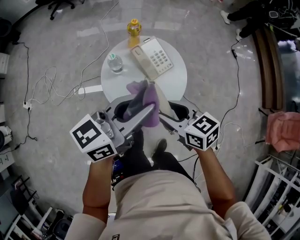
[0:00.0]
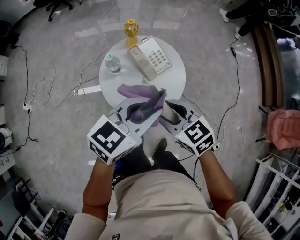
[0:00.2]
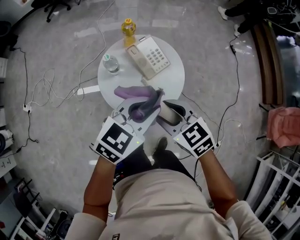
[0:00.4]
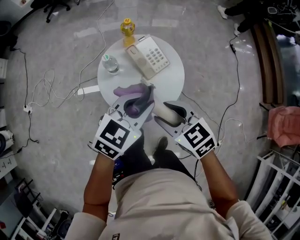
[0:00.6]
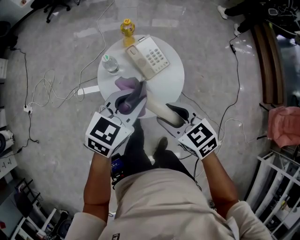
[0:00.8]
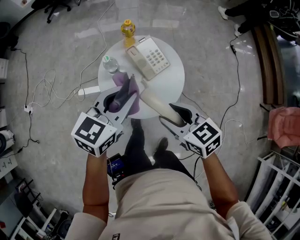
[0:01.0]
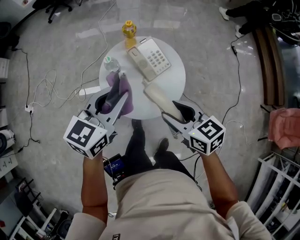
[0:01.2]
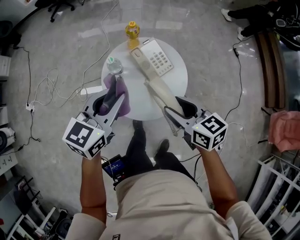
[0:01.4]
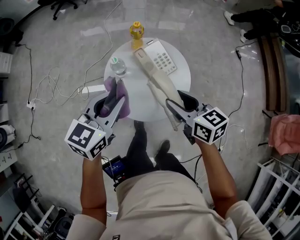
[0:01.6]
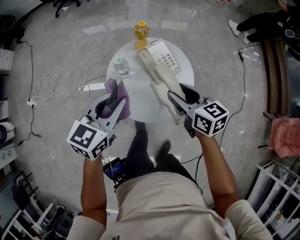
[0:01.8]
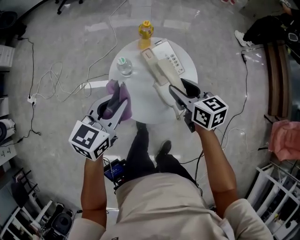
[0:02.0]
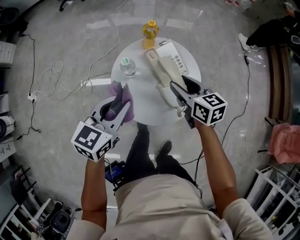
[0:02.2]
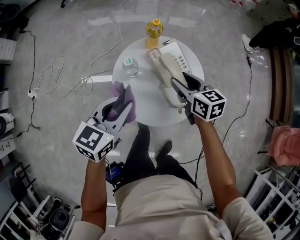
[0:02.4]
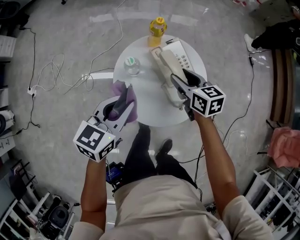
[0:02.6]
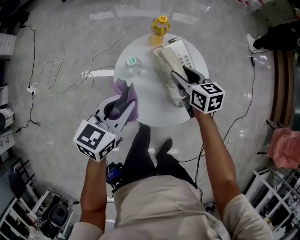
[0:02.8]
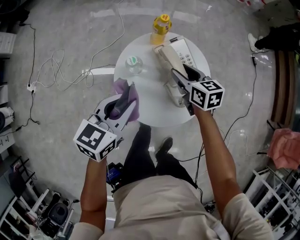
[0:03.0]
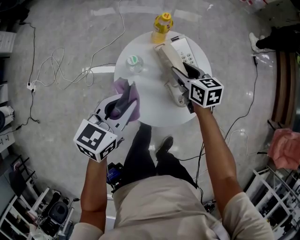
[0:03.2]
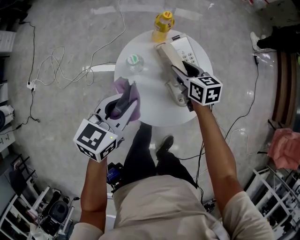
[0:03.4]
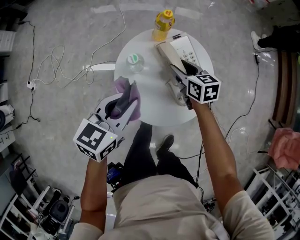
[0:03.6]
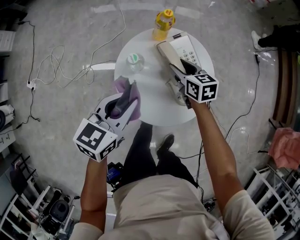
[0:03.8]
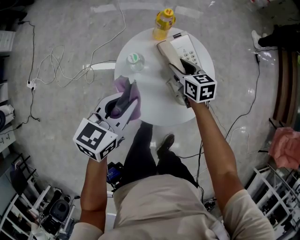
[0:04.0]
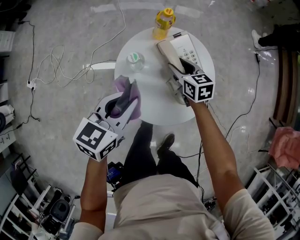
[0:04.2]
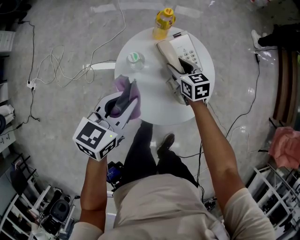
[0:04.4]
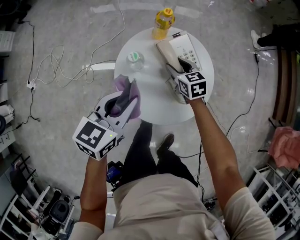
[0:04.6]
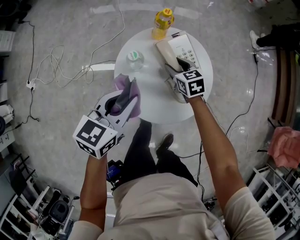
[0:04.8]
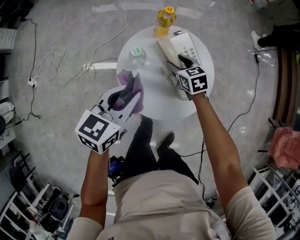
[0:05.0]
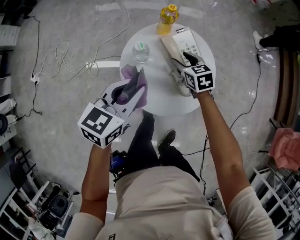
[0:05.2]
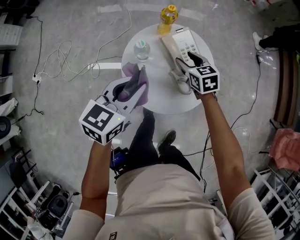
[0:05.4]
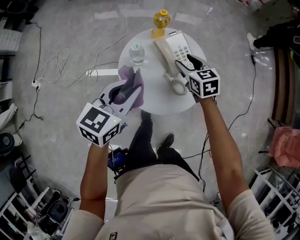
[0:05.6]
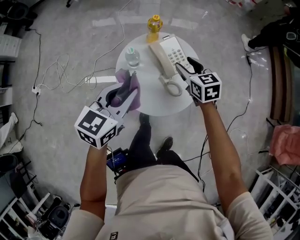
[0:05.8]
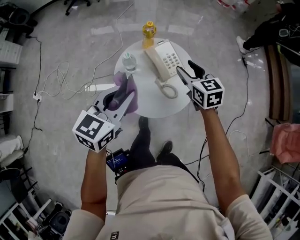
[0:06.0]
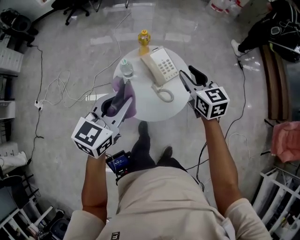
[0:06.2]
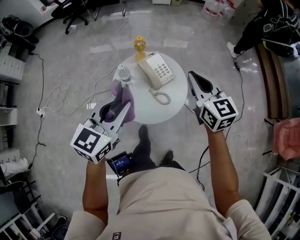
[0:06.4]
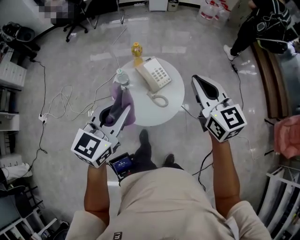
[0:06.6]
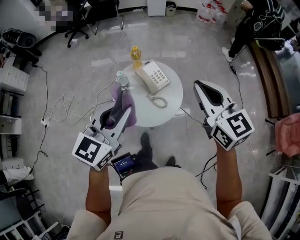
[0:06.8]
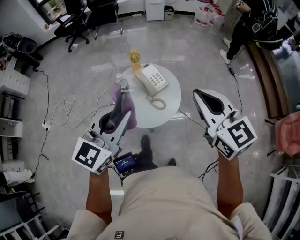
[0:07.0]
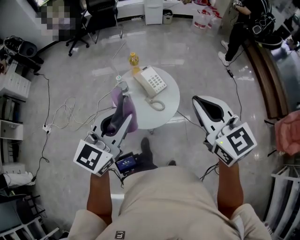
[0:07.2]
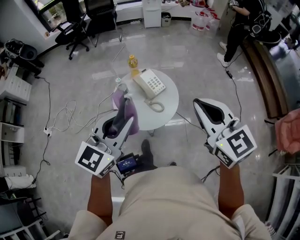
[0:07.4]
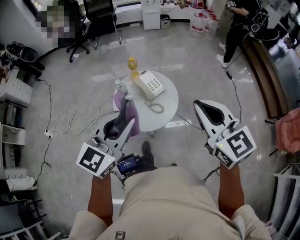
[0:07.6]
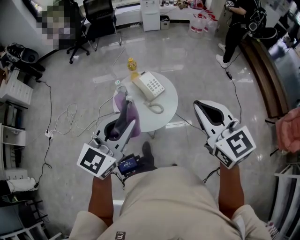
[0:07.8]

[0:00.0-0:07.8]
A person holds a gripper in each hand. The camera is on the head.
0:00.0 to 0:01.6: The right gripper is displaced forward by approximately 5 cm, while the left gripper shifts approximately 10 cm to the left and downward, and changes its angle by approximately 30 degrees.
0:01.6 to 0:03.2: The right gripper shifts about 20 cm forward and downward. Meanwhile the left gripper moves downward, some 10 cm.
0:03.2 to 0:04.6: The right gripper travels downward by about 5 cm.
0:04.6 to 0:06.2: The right gripper goes about 30 cm upward, and swivels approximately 20 degrees. Meanwhile the left gripper is displaced upward and backward by some 15 cm.
0:06.2 to 0:07.8: The right gripper shifts approximately 35 cm upward and backward, and closes; the left gripper moves upward, backward and to the right, about 25 cm.

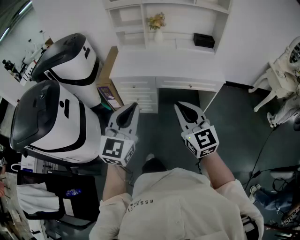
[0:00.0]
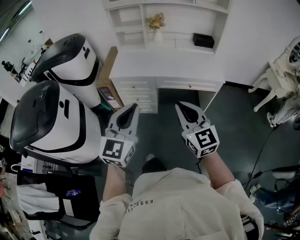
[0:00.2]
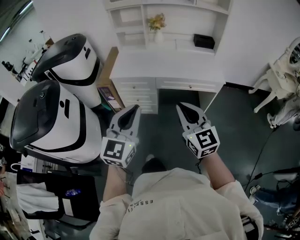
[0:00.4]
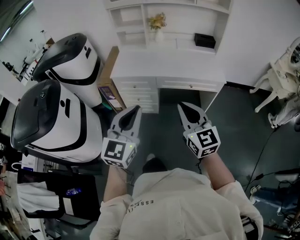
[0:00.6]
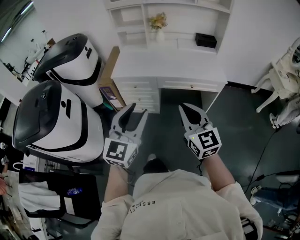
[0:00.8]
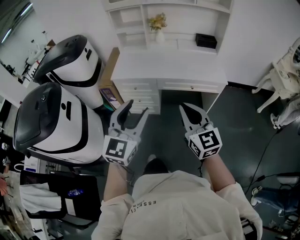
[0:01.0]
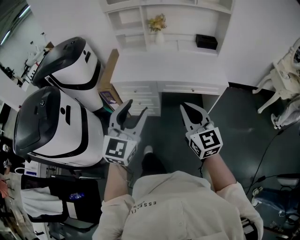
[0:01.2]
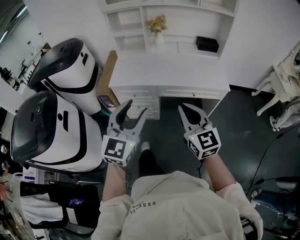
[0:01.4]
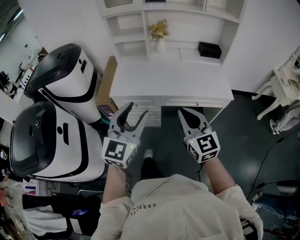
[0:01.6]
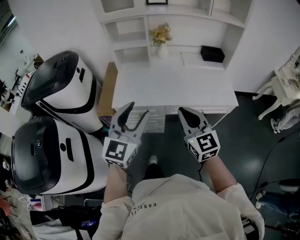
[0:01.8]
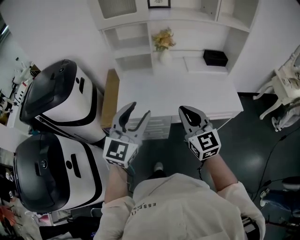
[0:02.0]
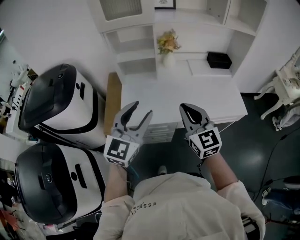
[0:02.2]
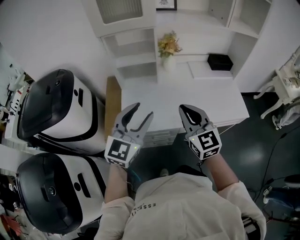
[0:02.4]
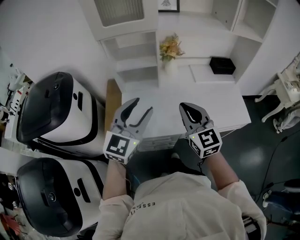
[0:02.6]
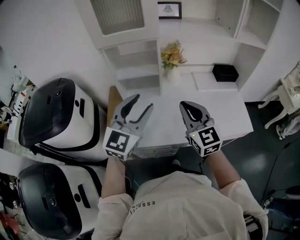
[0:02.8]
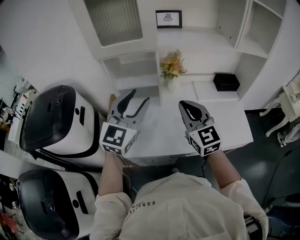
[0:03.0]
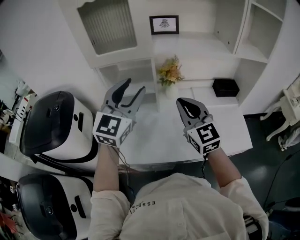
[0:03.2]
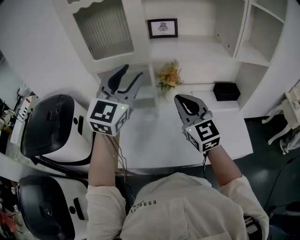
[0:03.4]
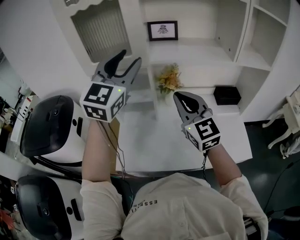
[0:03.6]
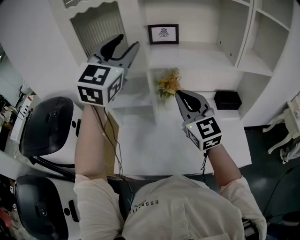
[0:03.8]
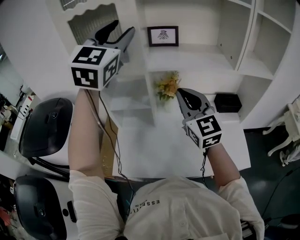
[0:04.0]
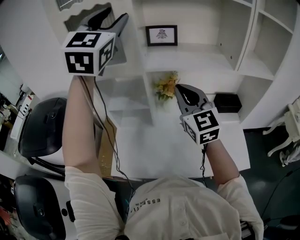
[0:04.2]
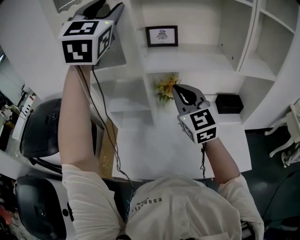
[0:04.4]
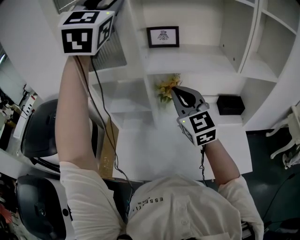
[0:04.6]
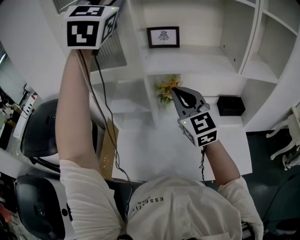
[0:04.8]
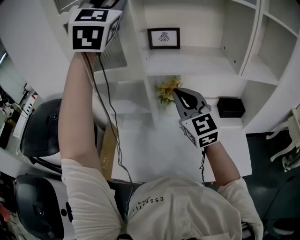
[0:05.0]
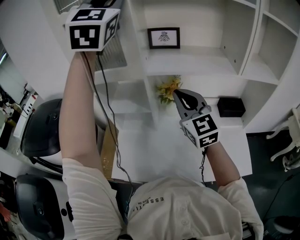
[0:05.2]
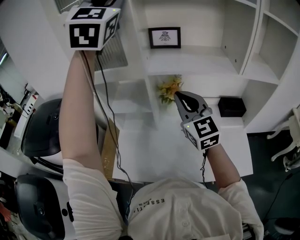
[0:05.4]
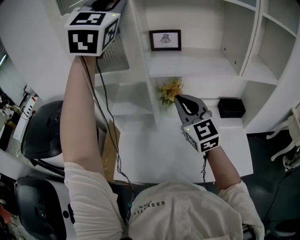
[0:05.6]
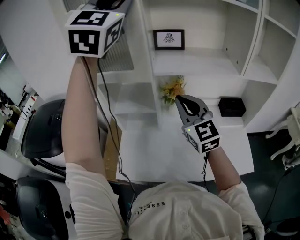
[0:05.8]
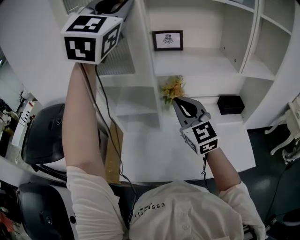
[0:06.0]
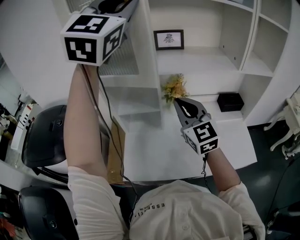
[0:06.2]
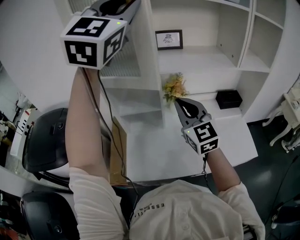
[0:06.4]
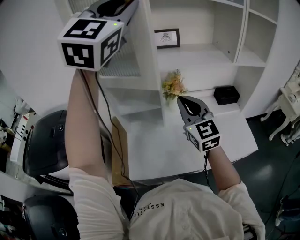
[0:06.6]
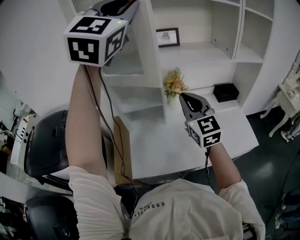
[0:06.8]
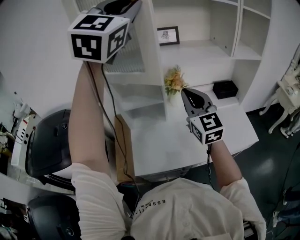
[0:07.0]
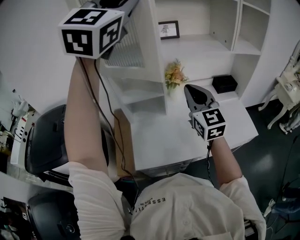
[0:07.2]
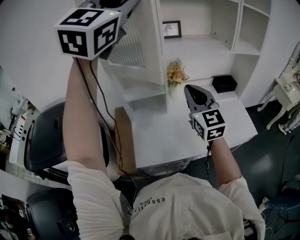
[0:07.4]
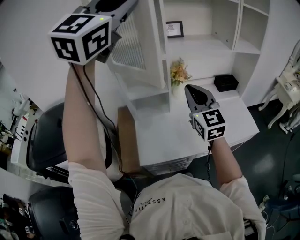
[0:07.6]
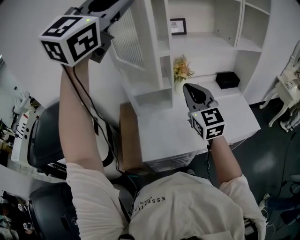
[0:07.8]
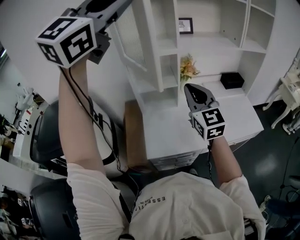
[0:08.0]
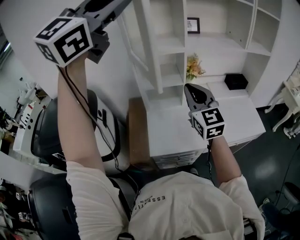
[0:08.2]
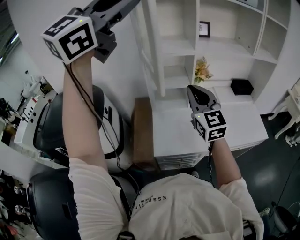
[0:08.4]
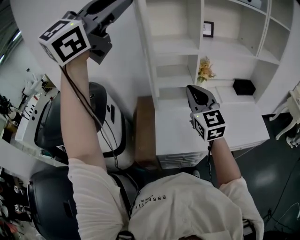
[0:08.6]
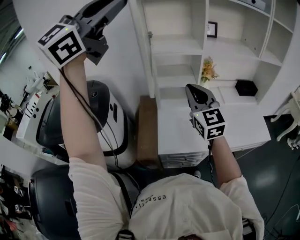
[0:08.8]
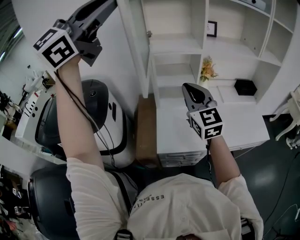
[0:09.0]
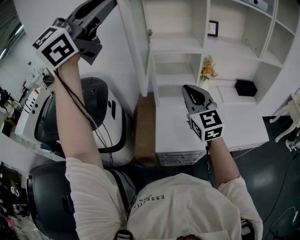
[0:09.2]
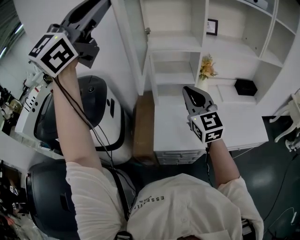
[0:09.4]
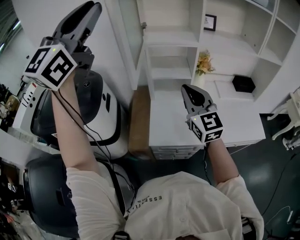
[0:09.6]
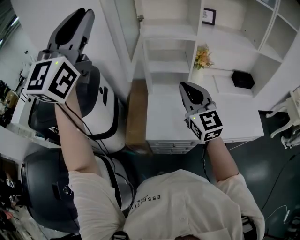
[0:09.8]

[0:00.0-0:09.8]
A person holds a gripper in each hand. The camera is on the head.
0:00.0 to 0:01.4: Both grippers move forward, roughly 10 cm. The left gripper opens up.
0:01.4 to 0:02.8: The pair of grippers is taken forward and to the left, roughly 40 cm.
0:02.8 to 0:04.2: The right gripper heads forward and upward, covering about 20 cm. Meanwhile the left gripper moves upward and forward, approximately 40 cm, and changes its angle by about 30 degrees.
0:04.2 to 0:05.6: The left gripper travels upward by roughly 5 cm, and closes up.
0:05.6 to 0:07.0: The left gripper is displaced backward by roughly 10 cm, and changes its angle by some 20 degrees; the right gripper travels backward and to the left by about 10 cm.
0:07.0 to 0:08.4: The left gripper shifts about 20 cm backward and to the left, and swivels some 20 degrees. Meanwhile the right gripper travels to the left and backward by roughly 15 cm.
0:08.4 to 0:09.8: The left gripper heads to the left, downward and backward, covering approximately 15 cm, and changes its angle by approximately 30 degrees.

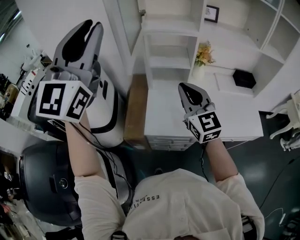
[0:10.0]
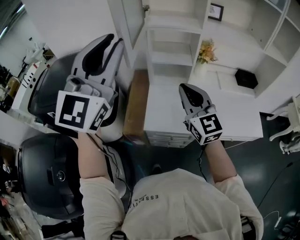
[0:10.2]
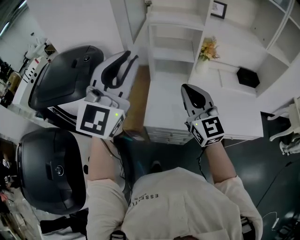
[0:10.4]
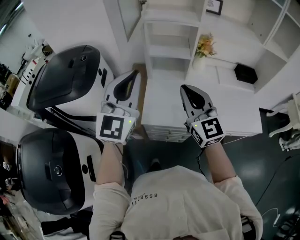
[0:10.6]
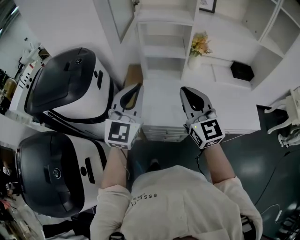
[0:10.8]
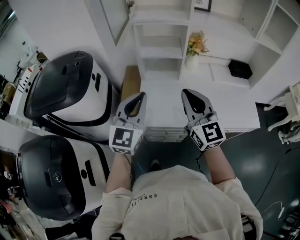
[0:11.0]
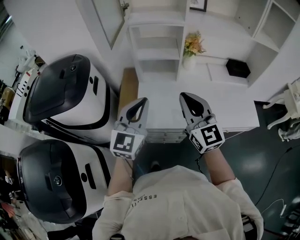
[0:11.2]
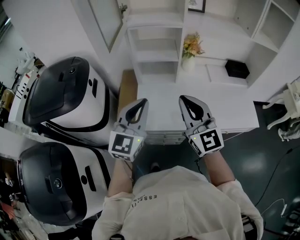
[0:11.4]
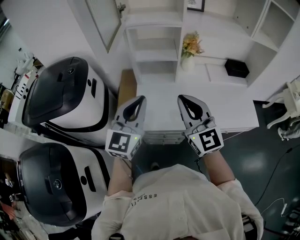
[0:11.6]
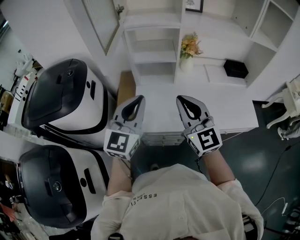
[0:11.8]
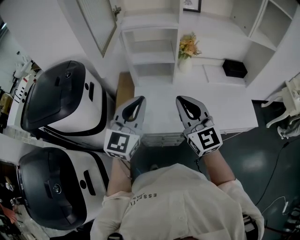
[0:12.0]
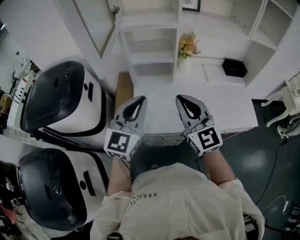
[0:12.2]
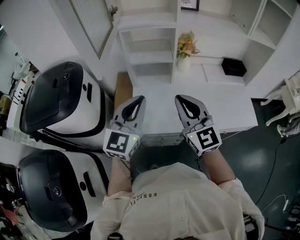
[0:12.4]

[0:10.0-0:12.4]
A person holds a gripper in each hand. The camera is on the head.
0:10.0 to 0:11.2: The left gripper is displaced downward and to the right by approximately 35 cm, and rotates roughly 30 degrees; the right gripper shifts approximately 10 cm backward and to the right.
0:11.2 to 0:12.4: The grippers stay close to where they were, moving slightly.

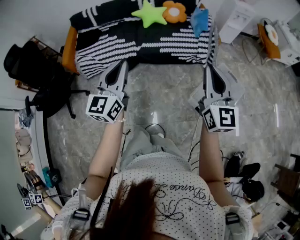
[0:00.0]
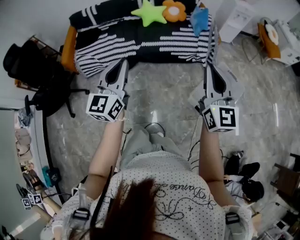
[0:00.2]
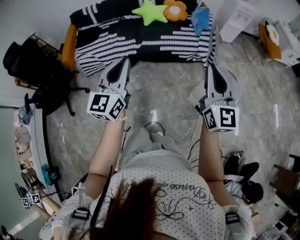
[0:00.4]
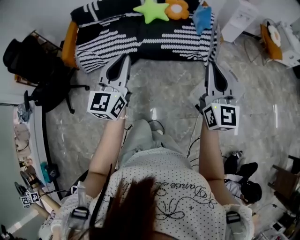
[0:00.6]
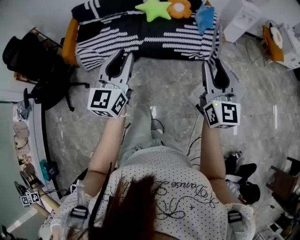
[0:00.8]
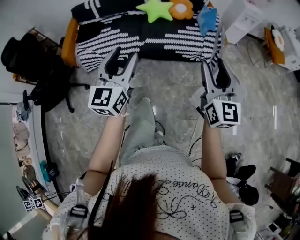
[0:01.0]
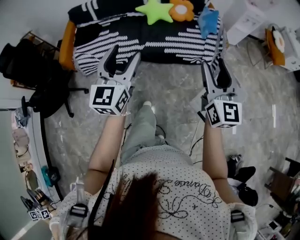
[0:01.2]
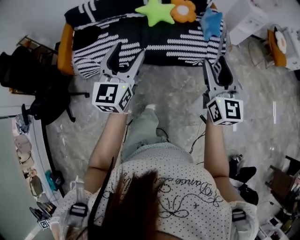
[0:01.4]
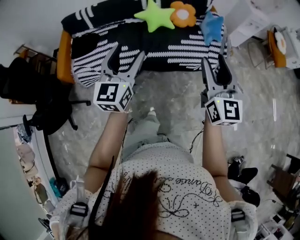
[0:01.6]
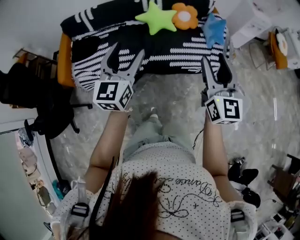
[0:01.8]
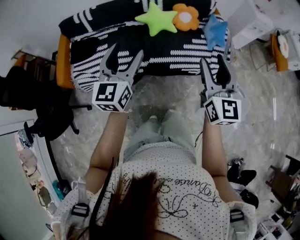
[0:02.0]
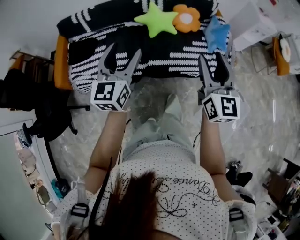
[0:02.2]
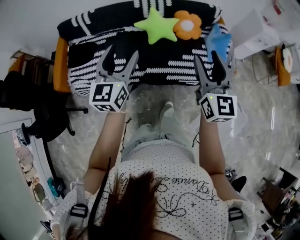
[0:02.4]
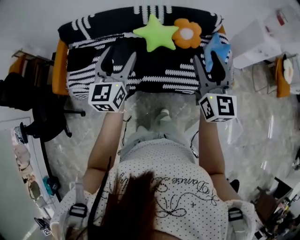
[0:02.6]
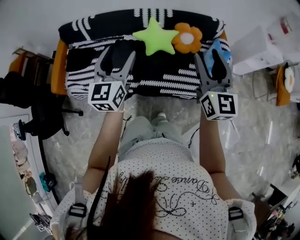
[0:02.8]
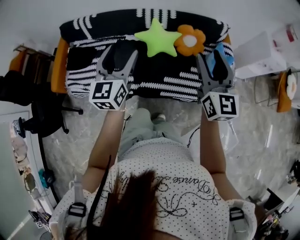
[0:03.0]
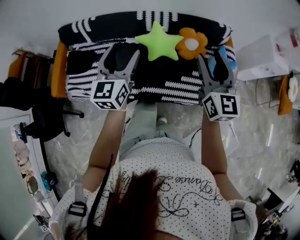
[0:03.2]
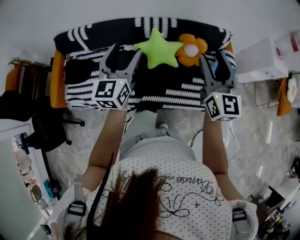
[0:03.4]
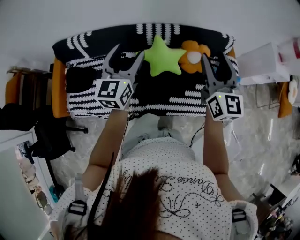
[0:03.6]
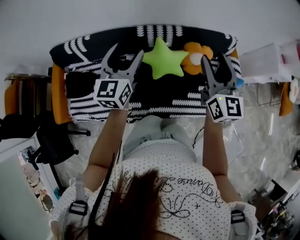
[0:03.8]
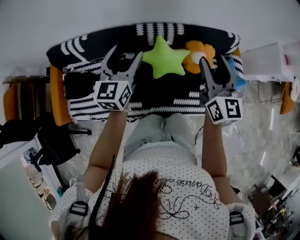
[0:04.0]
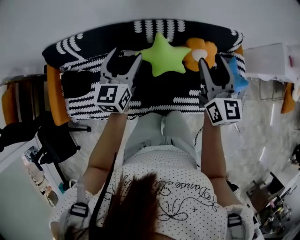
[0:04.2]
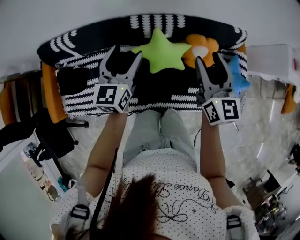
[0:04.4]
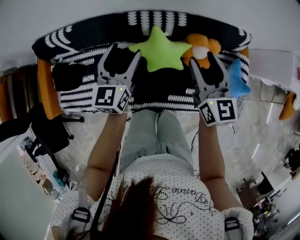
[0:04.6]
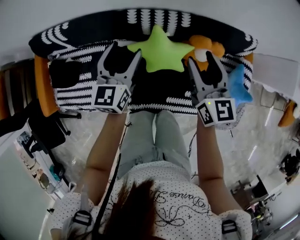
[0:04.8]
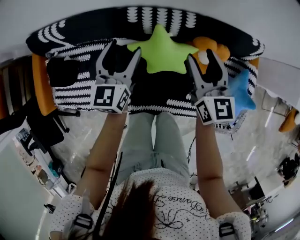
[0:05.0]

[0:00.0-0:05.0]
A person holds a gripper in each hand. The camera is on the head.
0:00.0 to 0:01.6: The right gripper goes approximately 25 cm forward and to the left, and opens. Meanwhile the left gripper goes roughly 25 cm forward, and opens its fingers.
0:01.6 to 0:03.4: Both grippers are carried forward, roughly 50 cm.
0:03.4 to 0:05.0: Both grippers travel together forward and downward, about 35 cm. The right gripper changes its angle by approximately 20 degrees.
